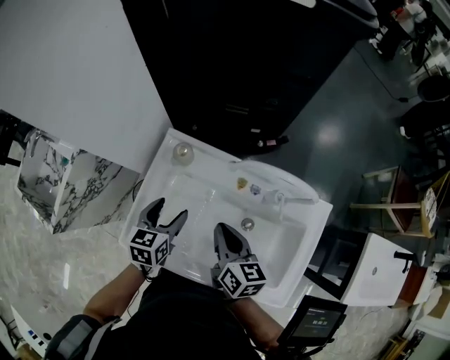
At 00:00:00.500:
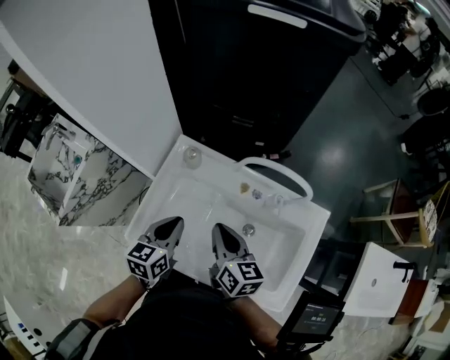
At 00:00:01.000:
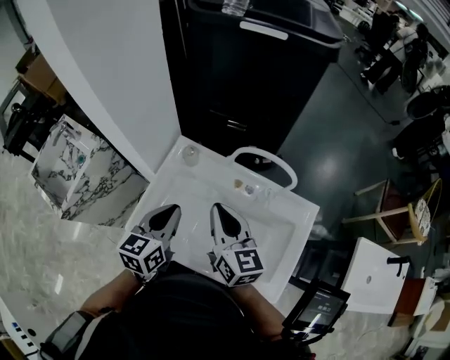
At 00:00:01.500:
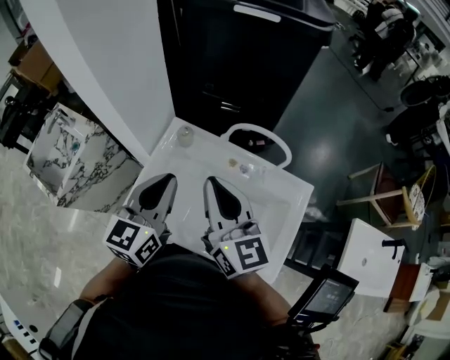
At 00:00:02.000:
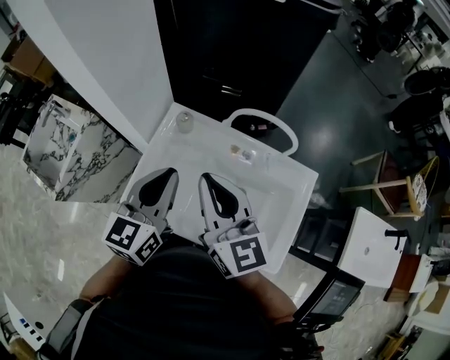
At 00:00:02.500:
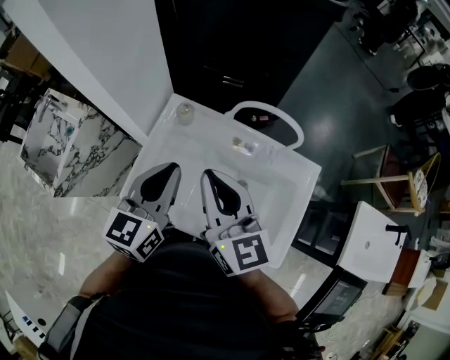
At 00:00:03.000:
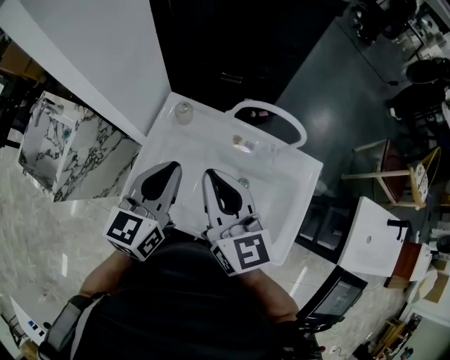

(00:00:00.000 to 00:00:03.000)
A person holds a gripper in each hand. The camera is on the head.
00:00:00.000 - 00:00:01.500: The two grippers go some 25 cm upward. The right gripper rotates roughly 40 degrees; the left gripper turns by approximately 30 degrees, and closes its fingers.
00:00:01.500 - 00:00:03.000: There are only small adjustments of the grippers.

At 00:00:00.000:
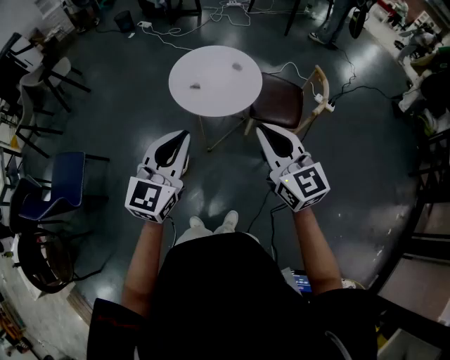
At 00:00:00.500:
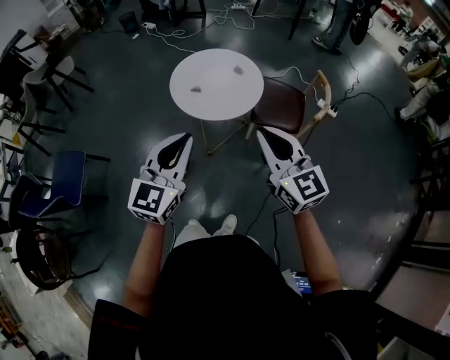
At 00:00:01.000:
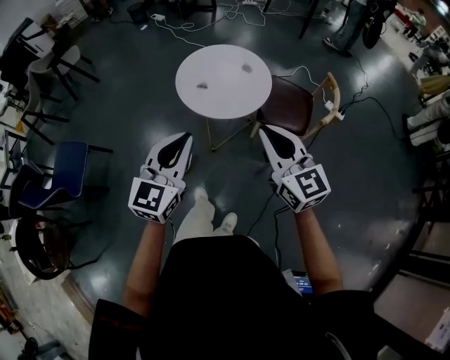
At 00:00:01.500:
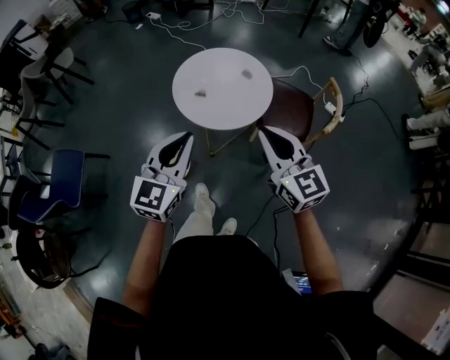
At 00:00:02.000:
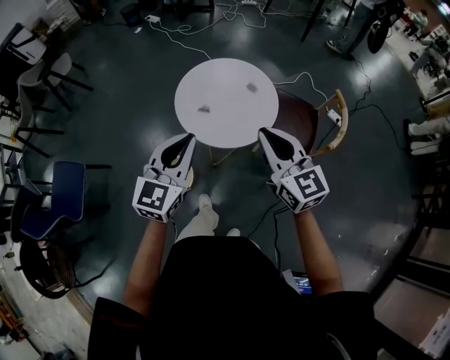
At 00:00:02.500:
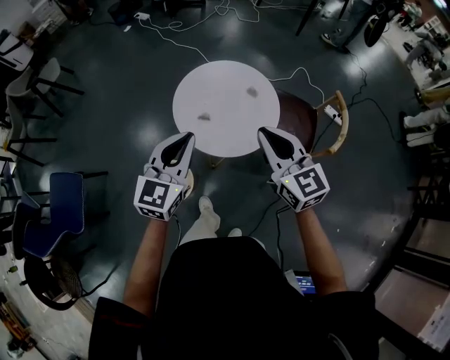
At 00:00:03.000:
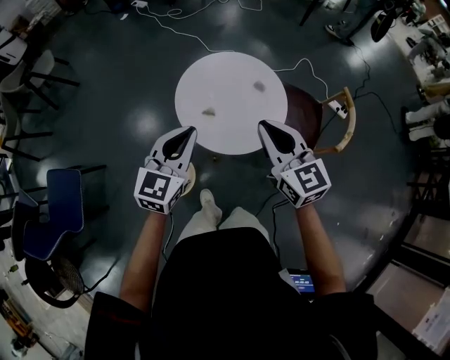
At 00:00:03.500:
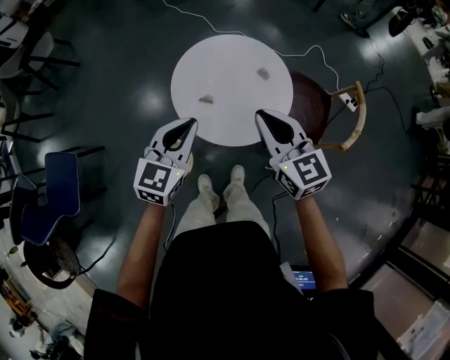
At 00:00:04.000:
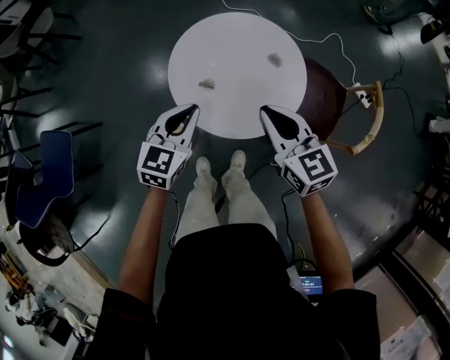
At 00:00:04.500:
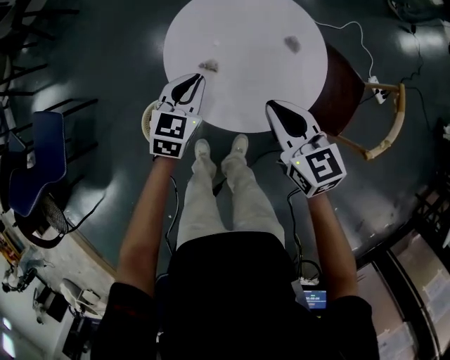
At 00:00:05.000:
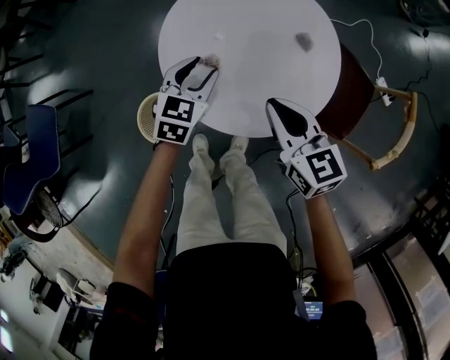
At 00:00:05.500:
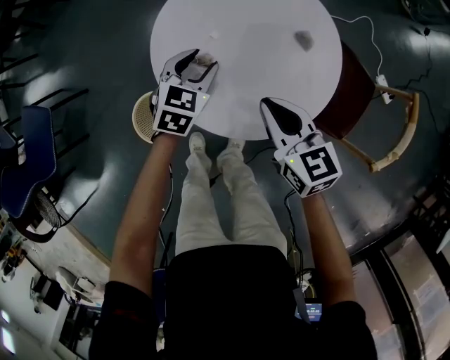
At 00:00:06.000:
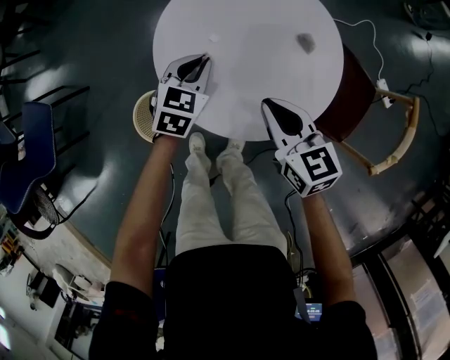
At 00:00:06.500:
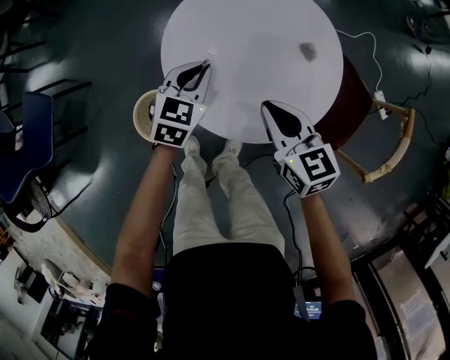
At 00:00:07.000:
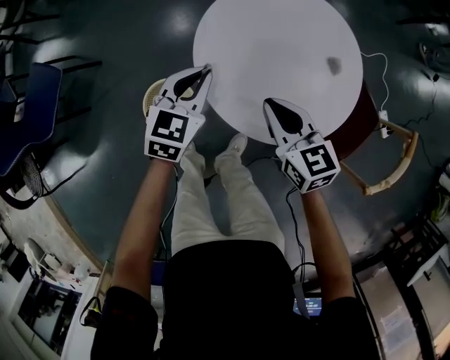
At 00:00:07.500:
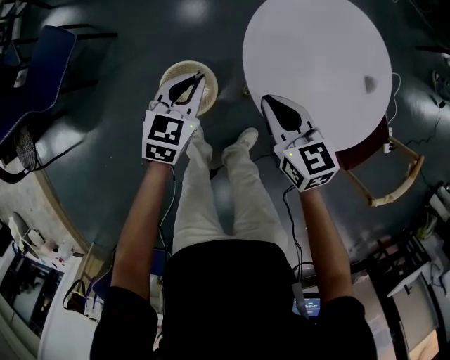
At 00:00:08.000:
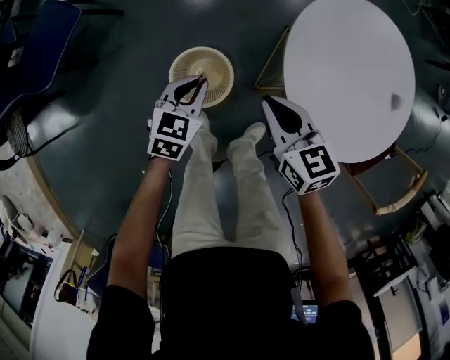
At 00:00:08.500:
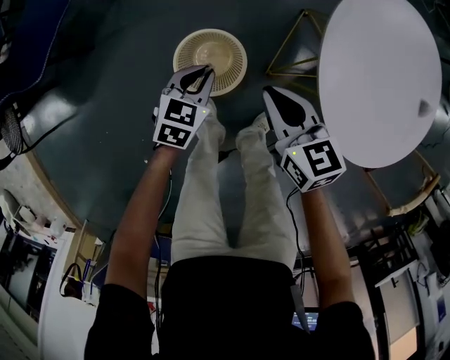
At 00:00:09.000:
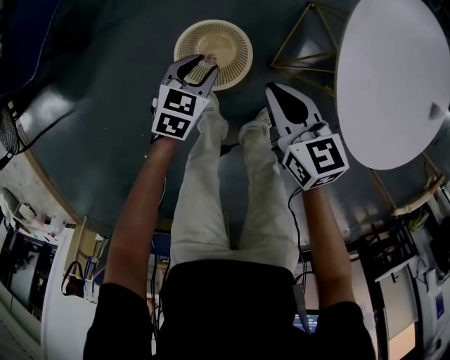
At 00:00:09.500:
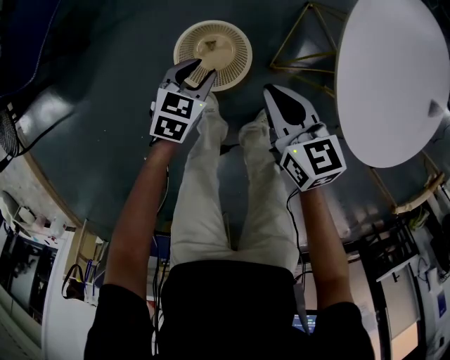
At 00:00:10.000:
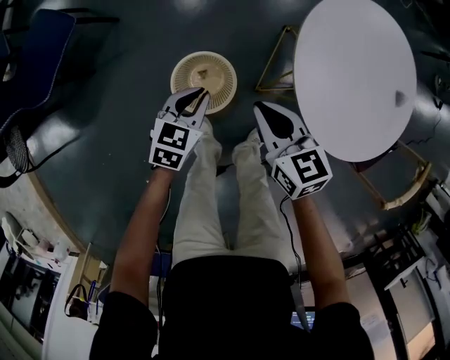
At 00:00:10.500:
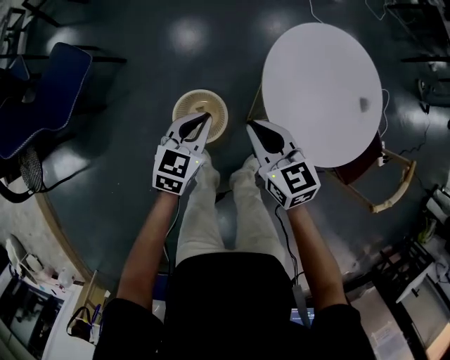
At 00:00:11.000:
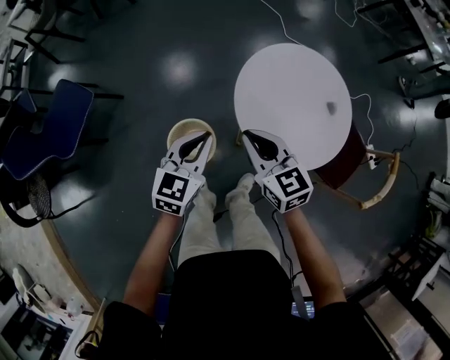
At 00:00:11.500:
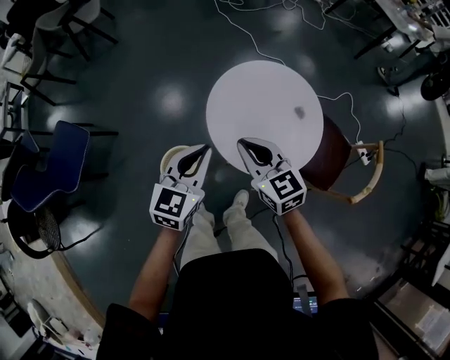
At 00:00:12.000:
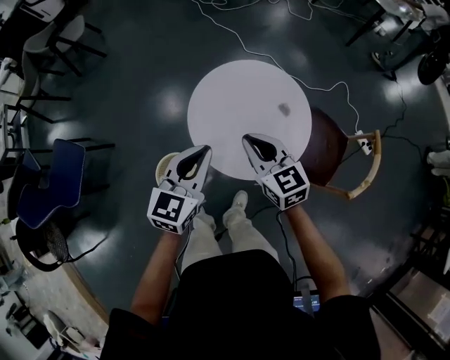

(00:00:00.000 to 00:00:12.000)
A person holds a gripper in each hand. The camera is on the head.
00:00:00.000 - 00:00:02.000: Both grippers move forward, about 20 cm.
00:00:02.000 - 00:00:04.000: Both grippers move forward and downward, roughly 30 cm.
00:00:04.000 - 00:00:06.000: The left gripper is displaced downward and forward by roughly 25 cm, and opens and closes again, while the right gripper heads downward, covering some 20 cm.
00:00:06.000 - 00:00:08.000: The two grippers go about 35 cm to the left. The left gripper turns by approximately 20 degrees, while the right gripper rotates some 20 degrees.
00:00:08.000 - 00:00:10.000: The left gripper travels downward and back again, approximately 15 cm each way, and opens, then closes once more. The right gripper travels downward and back again, about 10 cm each way.
00:00:10.000 - 00:00:12.000: The left gripper heads upward and to the right, covering about 50 cm, and turns by about 30 degrees; the right gripper goes about 40 cm to the right and upward, and rotates approximately 20 degrees.

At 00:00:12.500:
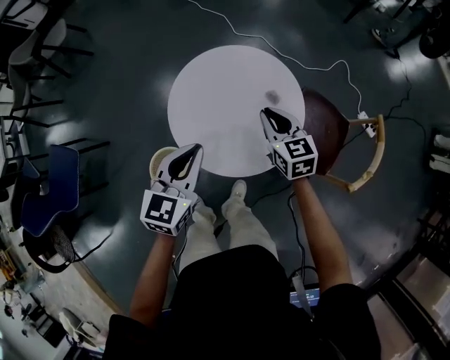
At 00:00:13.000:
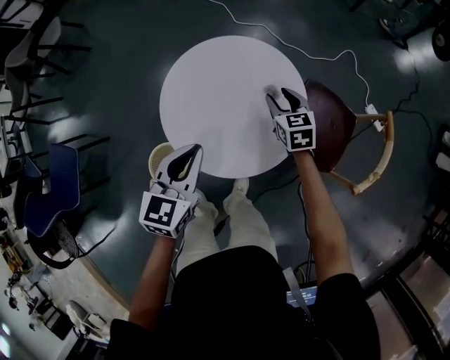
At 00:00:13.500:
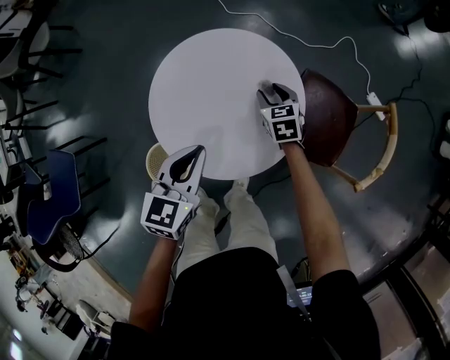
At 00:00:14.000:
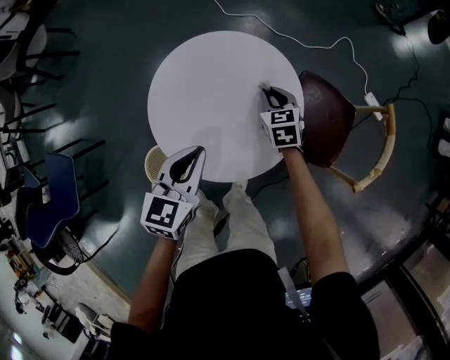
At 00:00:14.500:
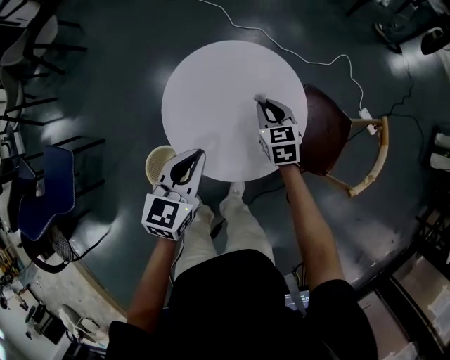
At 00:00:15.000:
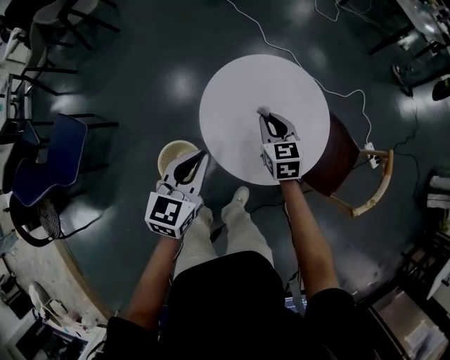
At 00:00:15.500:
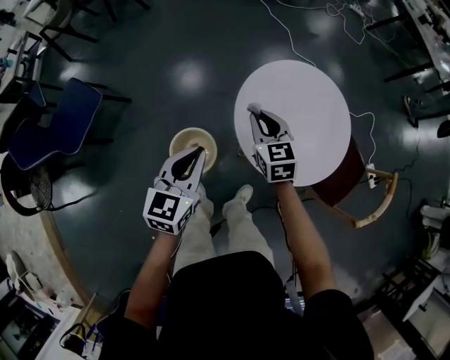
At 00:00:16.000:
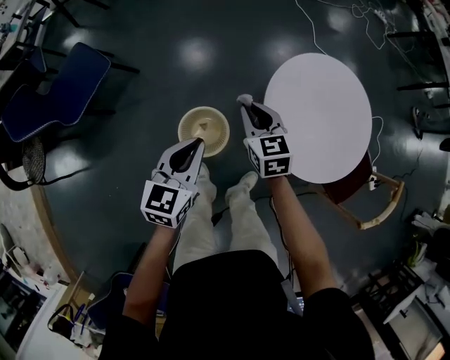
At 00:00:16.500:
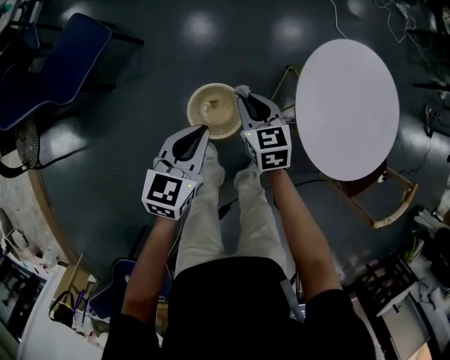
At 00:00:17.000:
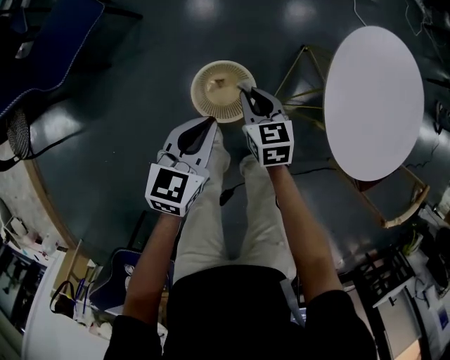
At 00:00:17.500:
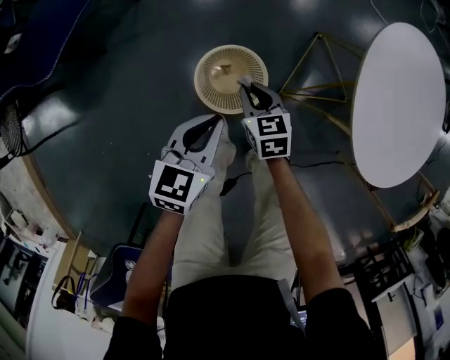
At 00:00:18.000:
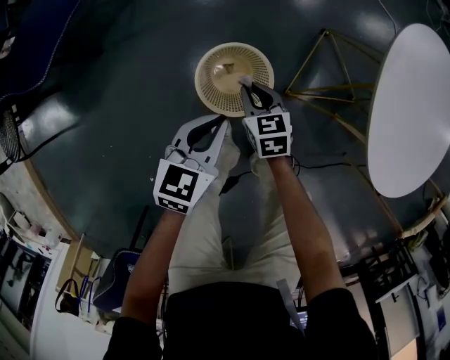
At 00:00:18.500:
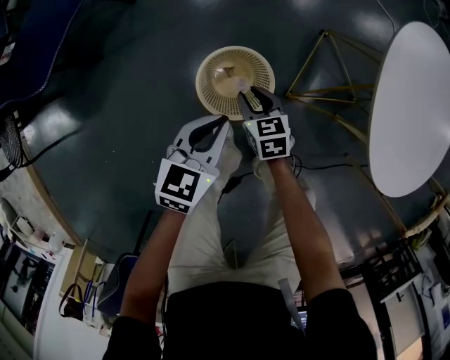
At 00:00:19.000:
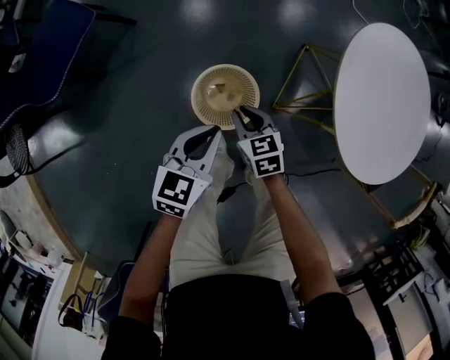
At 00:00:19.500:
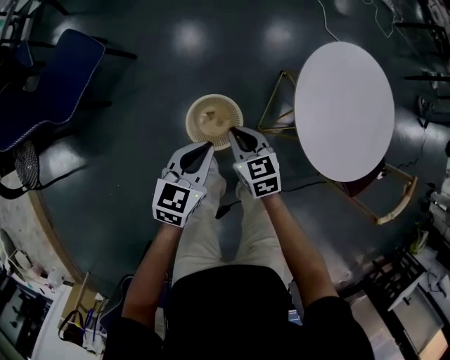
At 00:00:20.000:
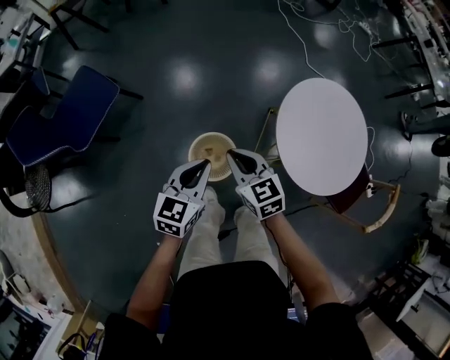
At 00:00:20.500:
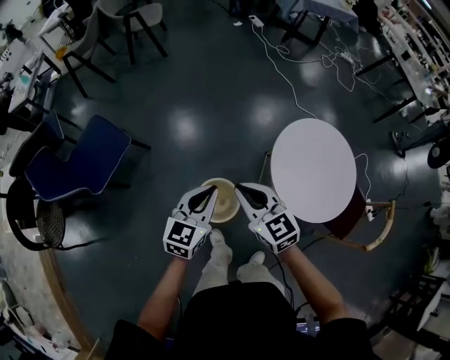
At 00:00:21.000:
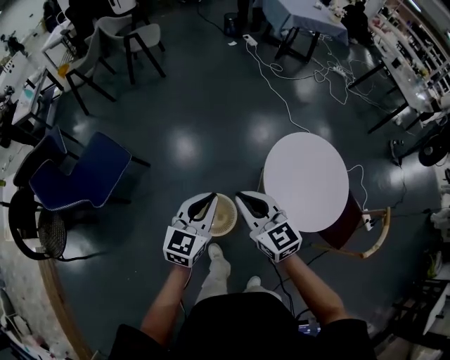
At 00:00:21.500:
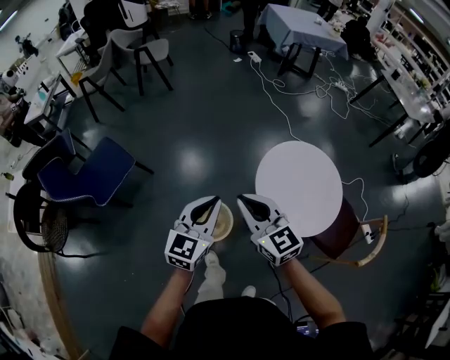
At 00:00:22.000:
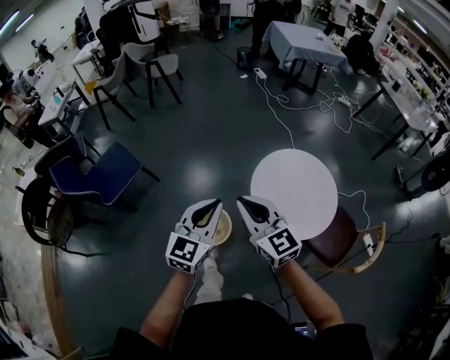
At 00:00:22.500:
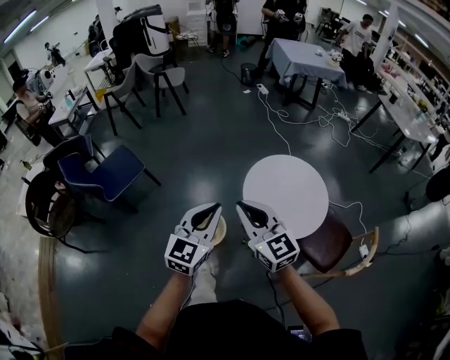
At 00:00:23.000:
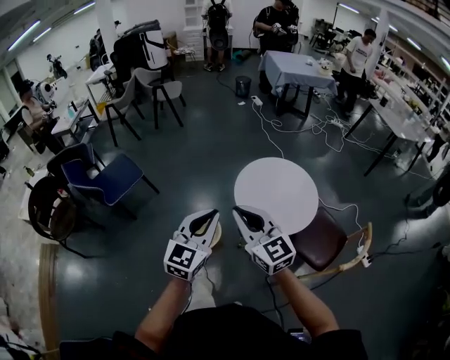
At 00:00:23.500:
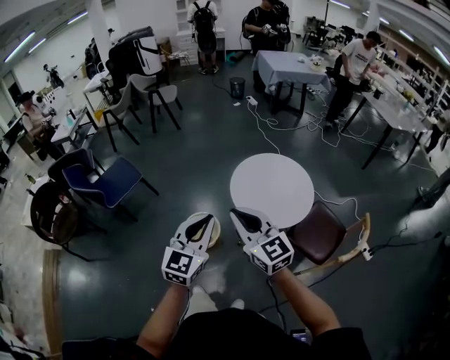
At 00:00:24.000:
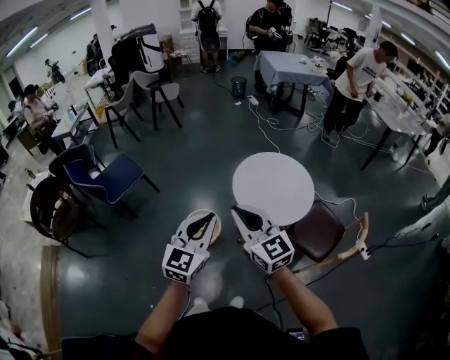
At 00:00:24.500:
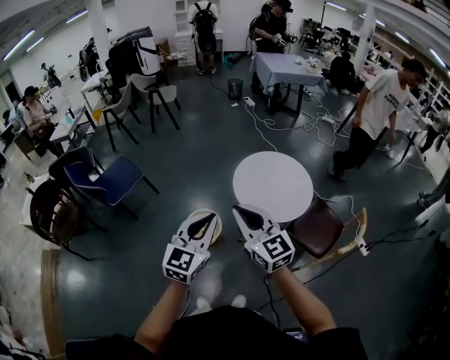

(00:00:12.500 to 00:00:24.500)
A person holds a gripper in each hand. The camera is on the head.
00:00:12.500 - 00:00:14.500: The right gripper is displaced downward and forward by approximately 10 cm, and opens, then closes once more; the left gripper goes about 5 cm downward.
00:00:14.500 - 00:00:16.500: Both grippers are carried roughly 50 cm. The left gripper changes its angle by about 30 degrees. The right gripper changes its angle by some 30 degrees.
00:00:16.500 - 00:00:18.500: The two grippers go about 30 cm downward.
00:00:18.500 - 00:00:20.500: The two grippers go roughly 60 cm upward. The right gripper turns by about 30 degrees, and closes up, while the left gripper swivels roughly 20 degrees.
00:00:20.500 - 00:00:22.500: The two grippers go about 35 cm backward, to the right and upward. The left gripper rotates some 20 degrees. Meanwhile the right gripper swivels approximately 20 degrees.
00:00:22.500 - 00:00:24.500: The two grippers go about 20 cm backward.
